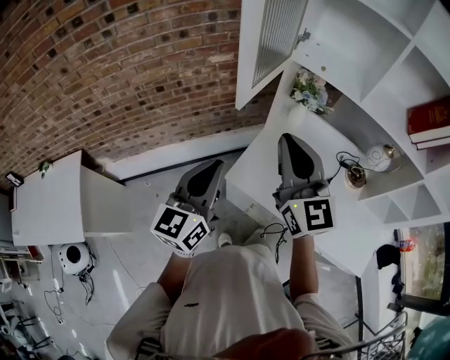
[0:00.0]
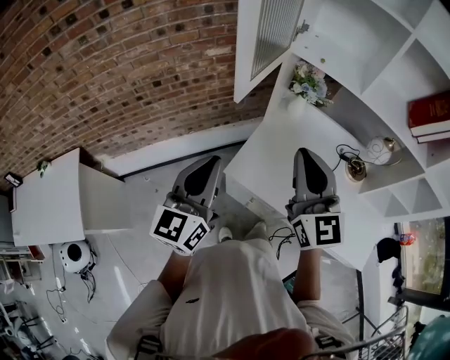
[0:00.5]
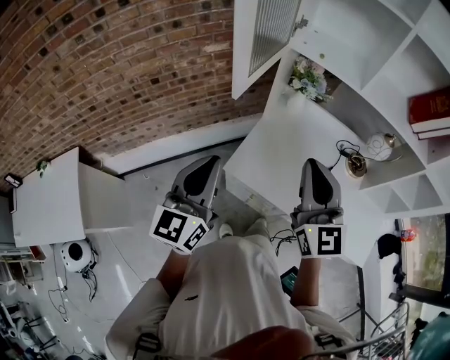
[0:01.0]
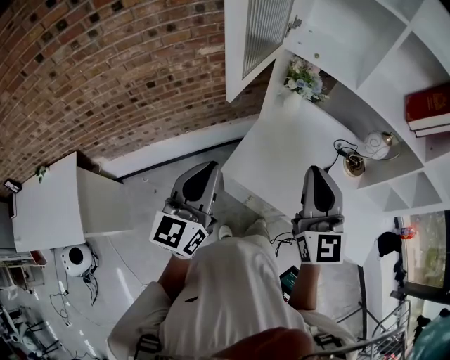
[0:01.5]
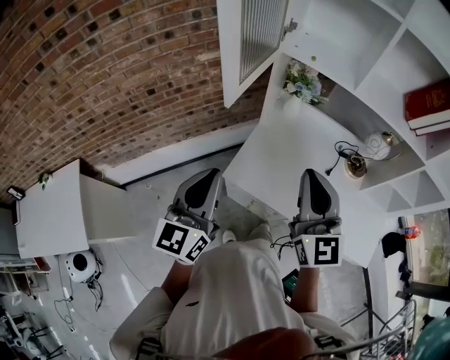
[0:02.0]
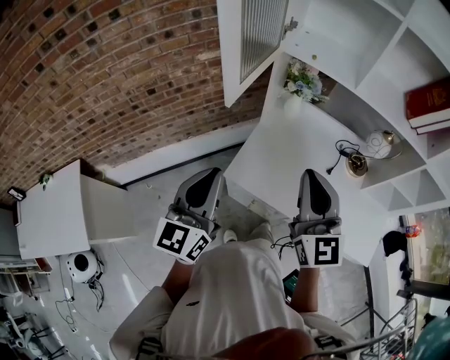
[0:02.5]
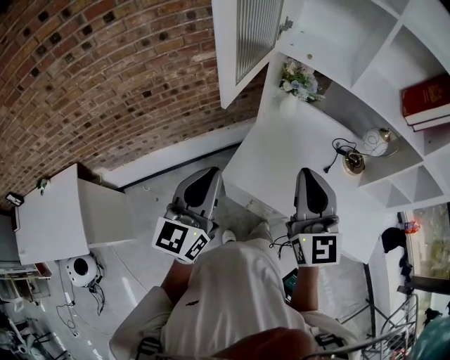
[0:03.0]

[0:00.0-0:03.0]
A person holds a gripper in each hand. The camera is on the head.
0:00.0 to 0:01.5: The right gripper heads to the right and backward, covering about 10 cm.
0:01.5 to 0:03.0: There are only small adjustments of the grippers.

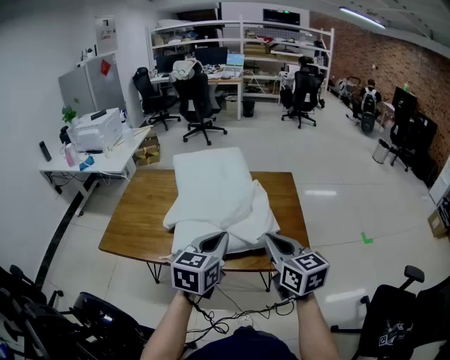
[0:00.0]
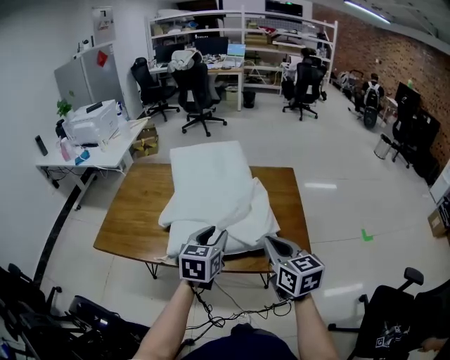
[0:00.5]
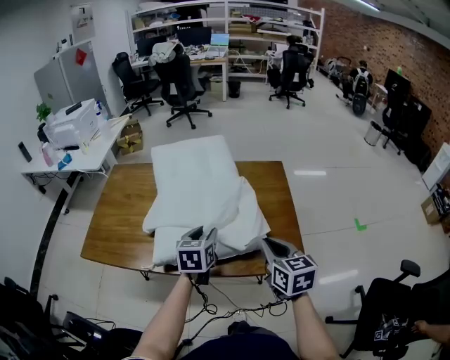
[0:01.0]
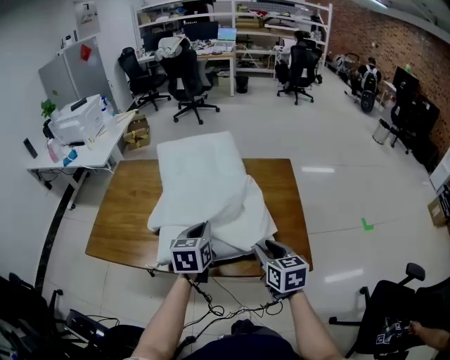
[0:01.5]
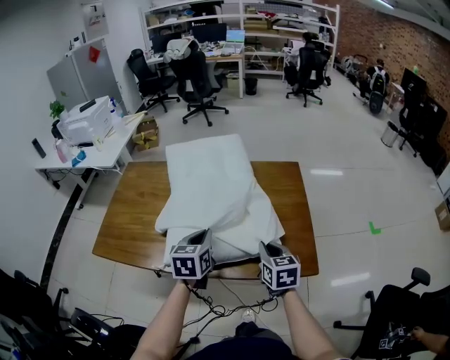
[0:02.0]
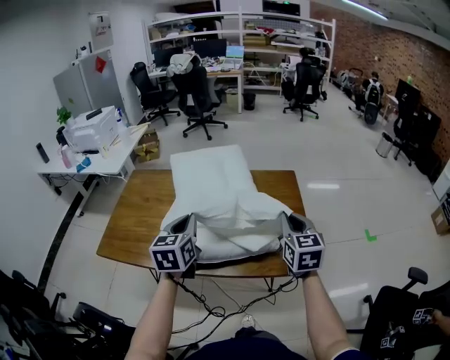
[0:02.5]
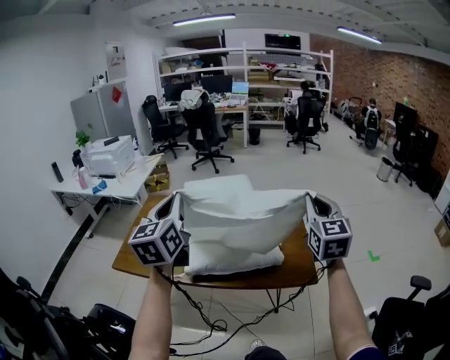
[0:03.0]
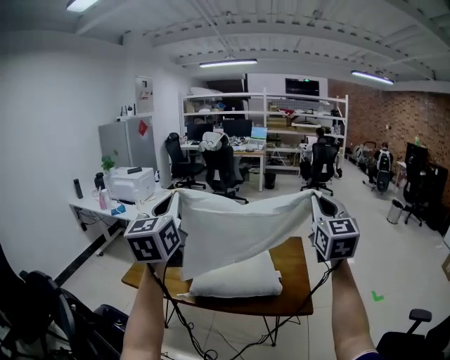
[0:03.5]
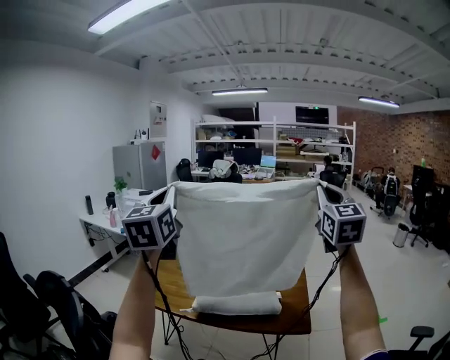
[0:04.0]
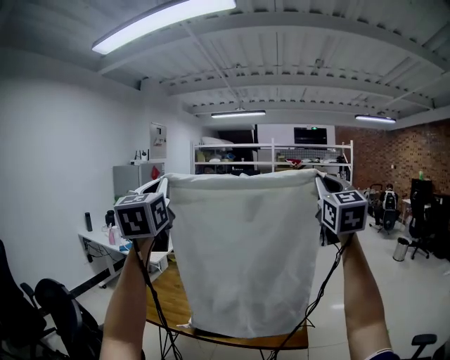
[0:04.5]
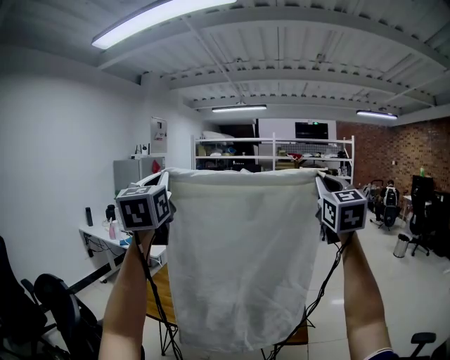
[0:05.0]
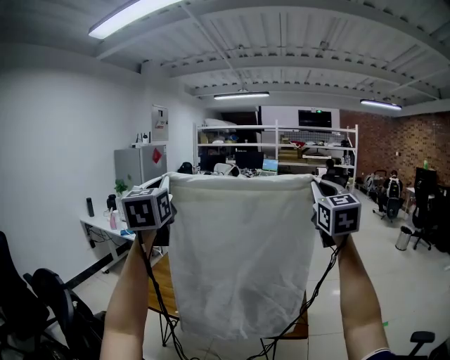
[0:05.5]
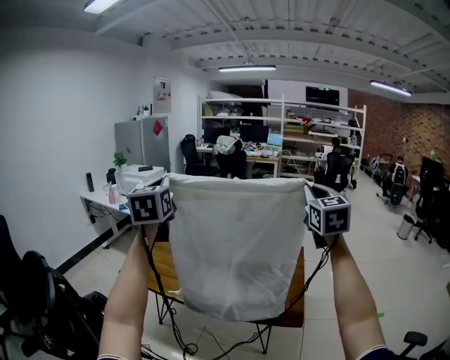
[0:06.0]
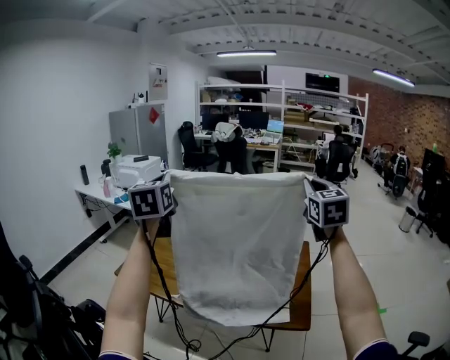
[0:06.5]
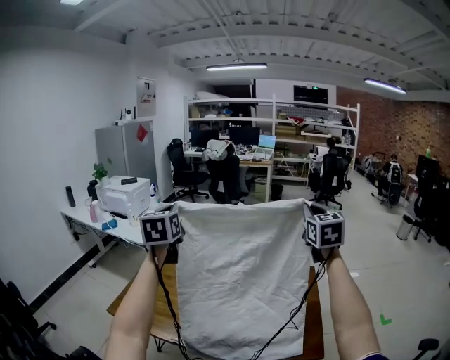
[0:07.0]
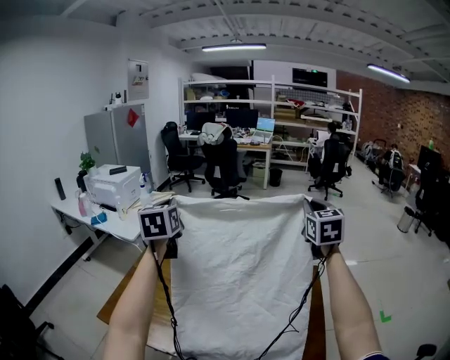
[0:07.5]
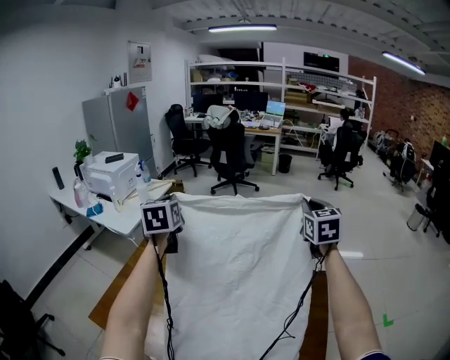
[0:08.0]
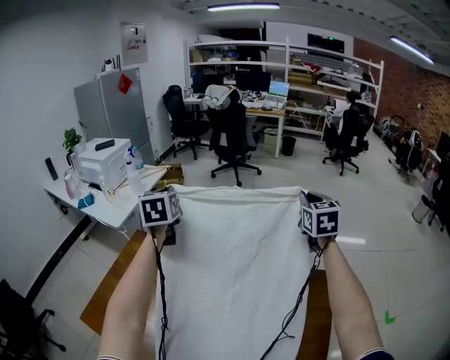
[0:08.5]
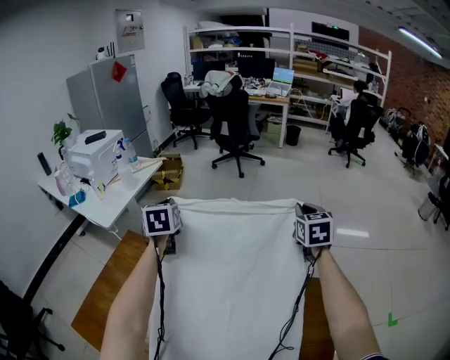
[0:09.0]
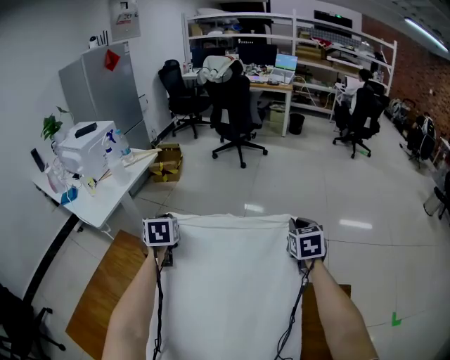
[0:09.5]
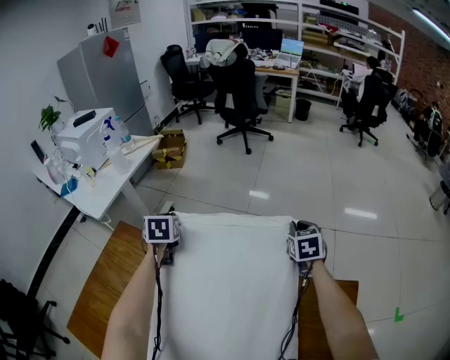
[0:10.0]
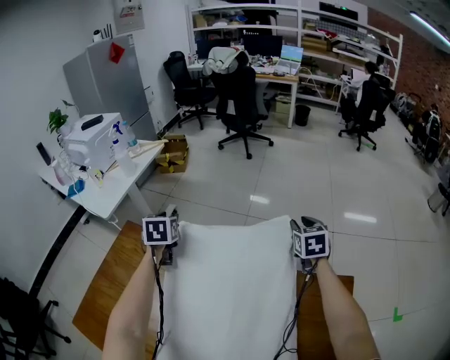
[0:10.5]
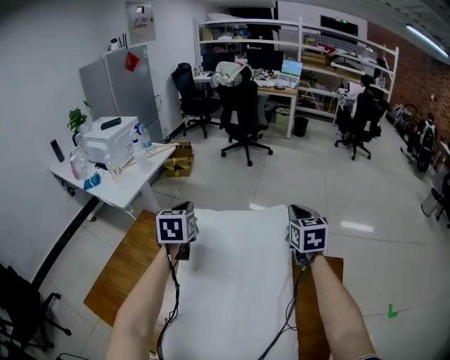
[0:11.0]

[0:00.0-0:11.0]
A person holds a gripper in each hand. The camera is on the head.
0:00.0 to 0:02.0: The left gripper goes some 15 cm forward and downward, and opens, then closes once more; the right gripper travels downward and forward by some 20 cm, rotates some 20 degrees, and opens, then closes again.
0:02.0 to 0:03.5: The grippers both shift upward by approximately 40 cm. The right gripper angles its fingers upward, by roughly 40 degrees. The left gripper tips its fingers upward by roughly 40 degrees.
0:03.5 to 0:05.5: Both grippers move upward, approximately 10 cm.
0:05.5 to 0:07.5: Both grippers move forward and downward, about 40 cm. The right gripper changes its angle by some 20 degrees. Meanwhile the left gripper turns by approximately 30 degrees.
0:07.5 to 0:09.0: The two grippers go approximately 35 cm forward and downward. The left gripper changes its angle by approximately 20 degrees.
0:09.0 to 0:11.0: The left gripper travels backward by roughly 10 cm, goes downward and returns, about 15 cm each way, and opens, then closes again. The right gripper heads backward and to the left, covering roughly 10 cm, moves roughly 20 cm downward and comes back, and opens, then closes again.

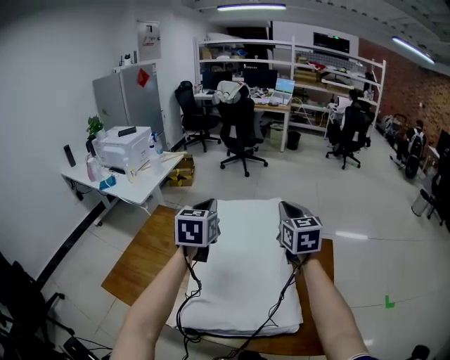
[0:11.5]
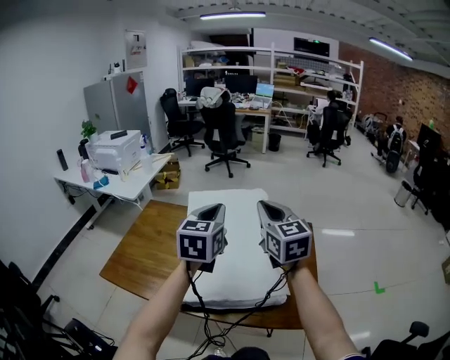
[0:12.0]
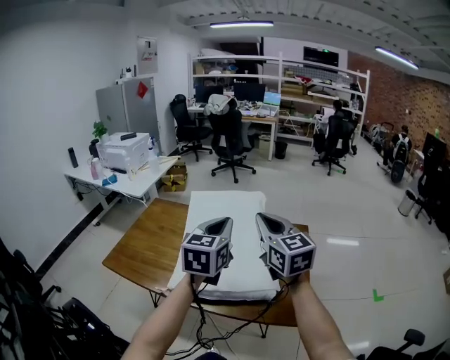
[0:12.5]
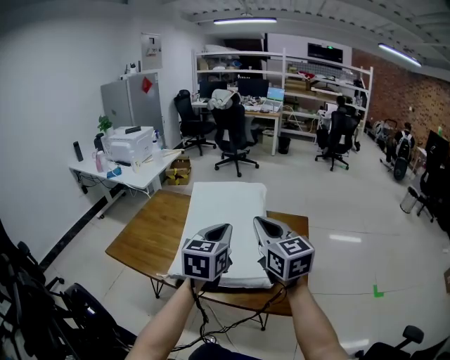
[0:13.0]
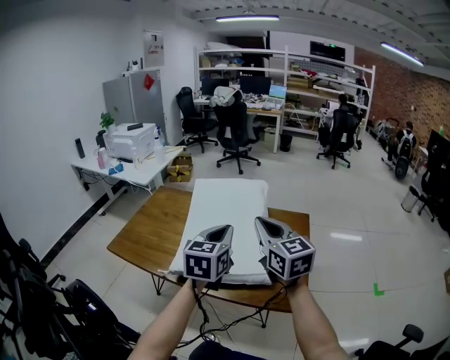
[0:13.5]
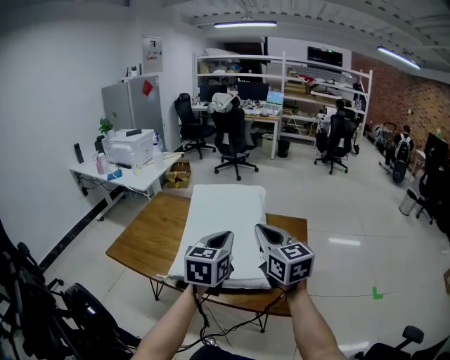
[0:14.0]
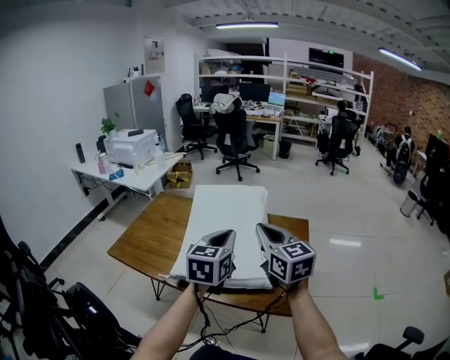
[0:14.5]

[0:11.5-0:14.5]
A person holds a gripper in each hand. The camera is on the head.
0:11.5 to 0:13.0: The right gripper goes roughly 25 cm backward; the left gripper goes about 30 cm backward and to the right.
0:13.0 to 0:14.5: The grippers stay close to where they were, moving slightly.

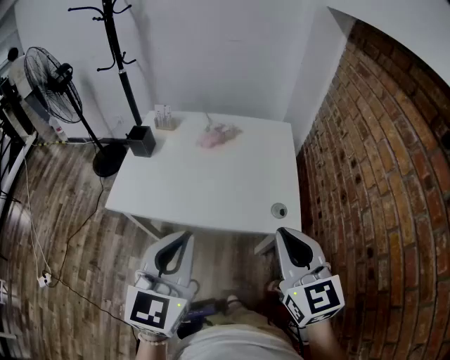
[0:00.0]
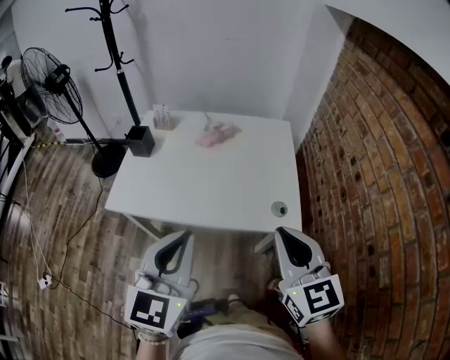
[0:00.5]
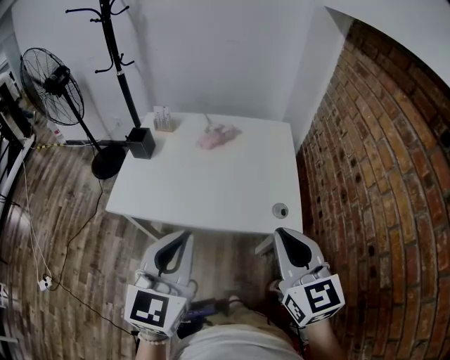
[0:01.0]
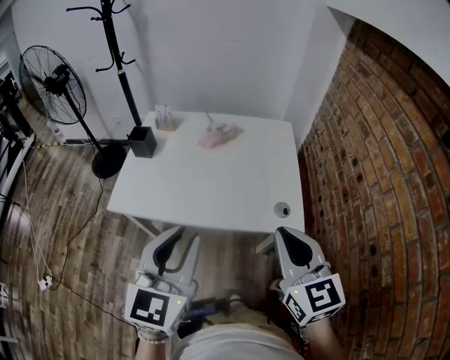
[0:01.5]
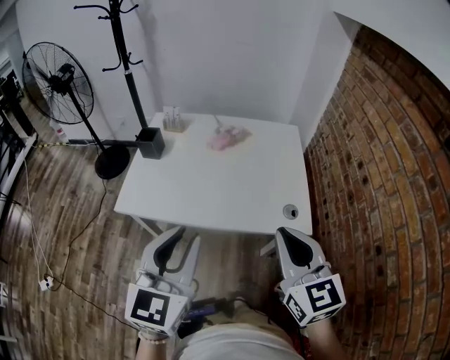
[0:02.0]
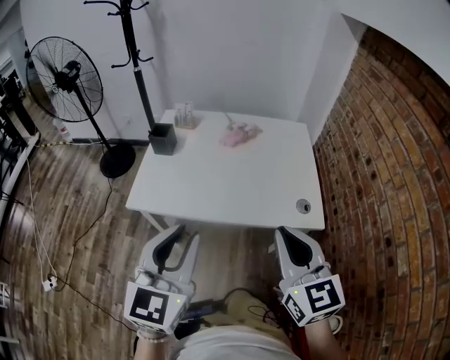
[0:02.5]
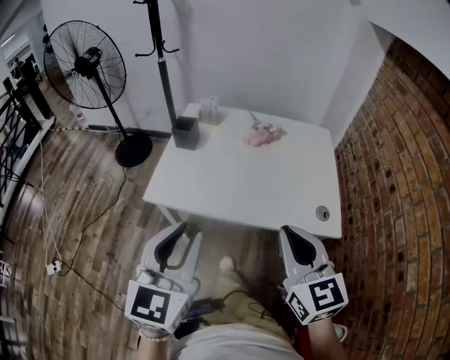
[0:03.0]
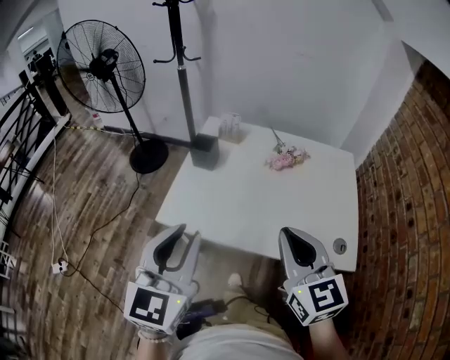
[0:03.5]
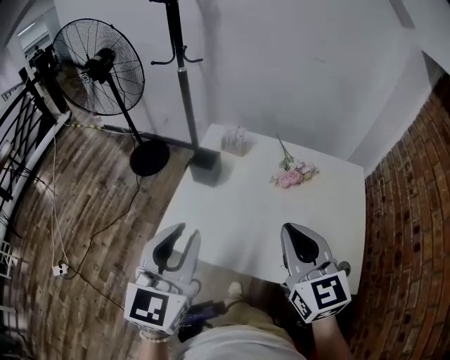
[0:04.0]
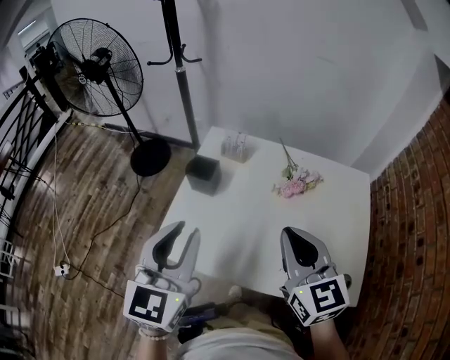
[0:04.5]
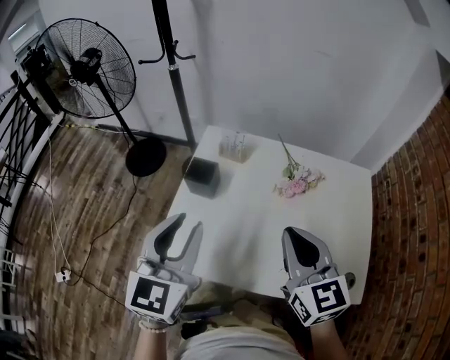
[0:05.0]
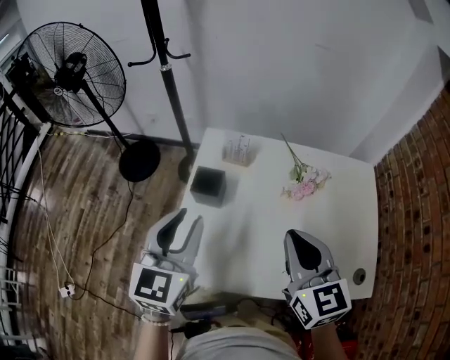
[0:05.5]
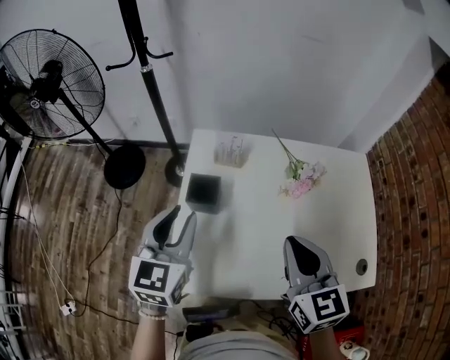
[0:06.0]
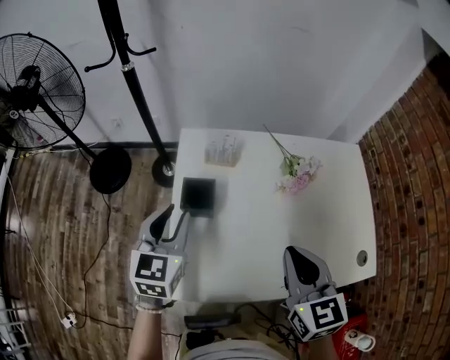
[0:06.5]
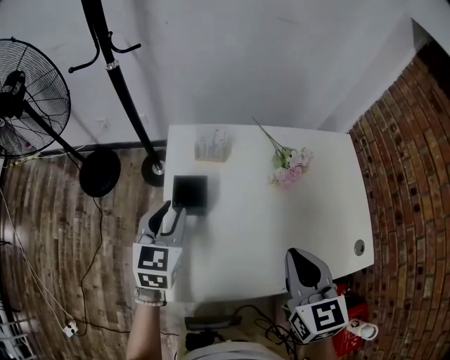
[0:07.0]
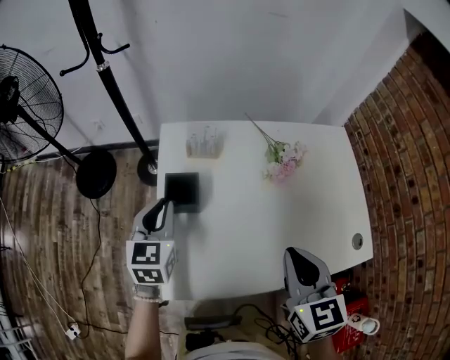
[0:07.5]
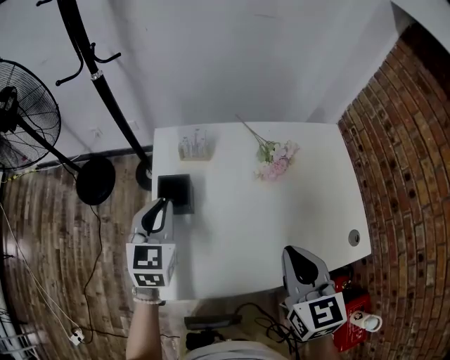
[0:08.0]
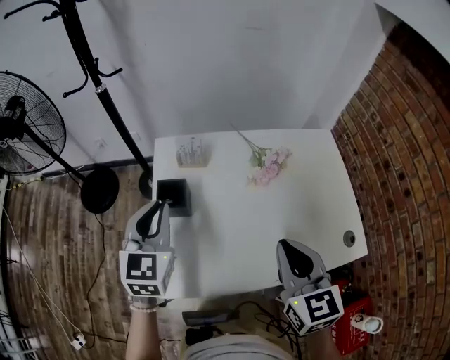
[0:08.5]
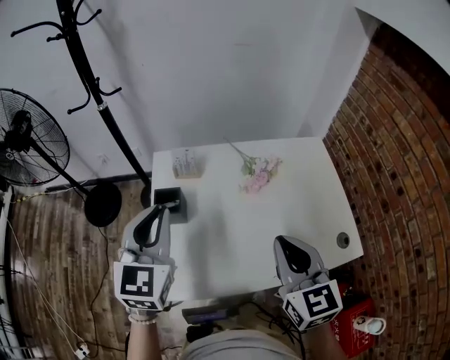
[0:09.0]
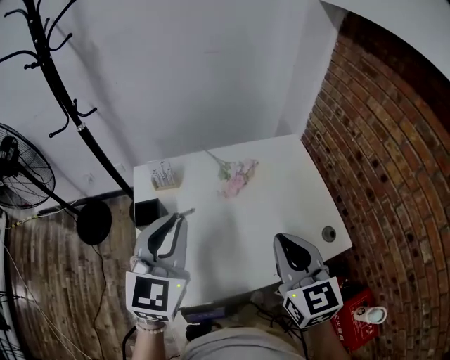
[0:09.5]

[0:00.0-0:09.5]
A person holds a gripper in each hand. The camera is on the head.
0:00.0 to 0:02.0: The left gripper opens.
0:02.0 to 0:04.0: Both grippers move forward and to the left, approximately 25 cm.
0:04.0 to 0:05.5: The left gripper is displaced forward by approximately 15 cm. The right gripper goes roughly 10 cm forward.
0:05.5 to 0:07.5: The right gripper goes some 5 cm downward, and turns by about 20 degrees, while the left gripper travels downward and forward by roughly 20 cm.
0:07.5 to 0:09.5: The left gripper goes some 25 cm upward, to the right and backward, and rotates about 20 degrees. The right gripper shifts approximately 15 cm to the right and upward.
